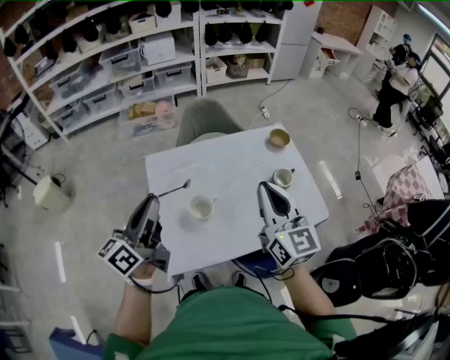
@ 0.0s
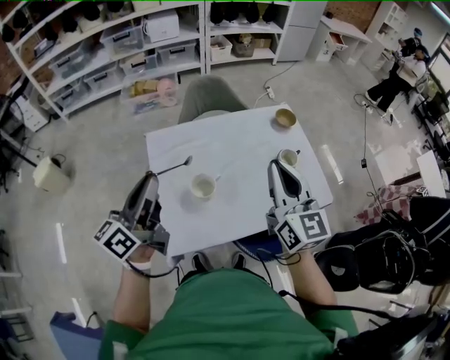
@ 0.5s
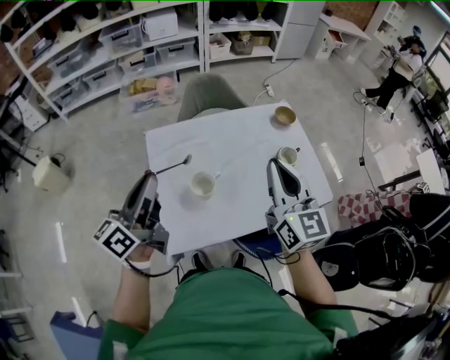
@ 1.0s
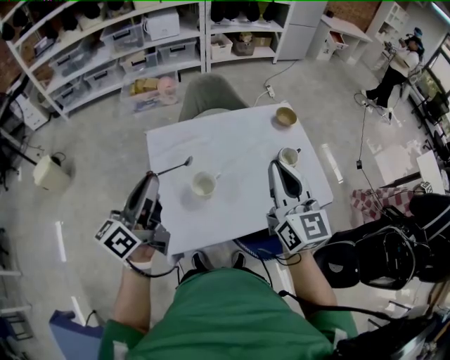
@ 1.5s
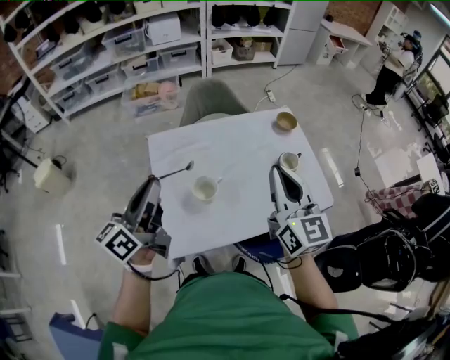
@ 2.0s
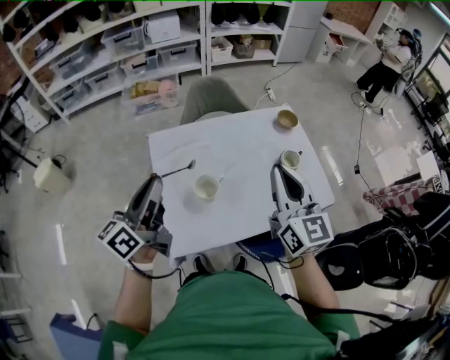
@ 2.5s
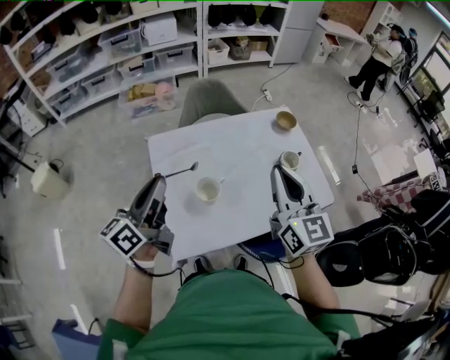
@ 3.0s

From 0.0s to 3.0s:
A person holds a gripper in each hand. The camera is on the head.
From 0.0s to 3.0s: The grippers make only small movements.

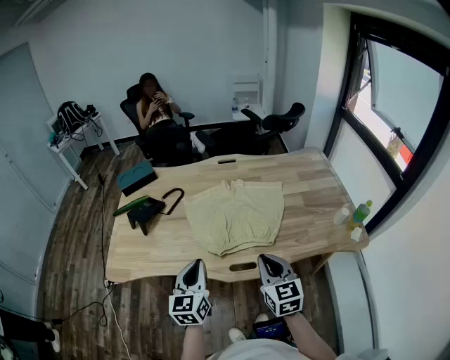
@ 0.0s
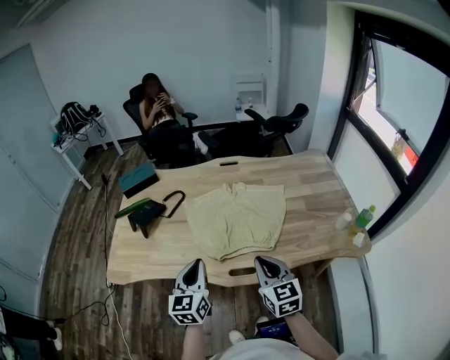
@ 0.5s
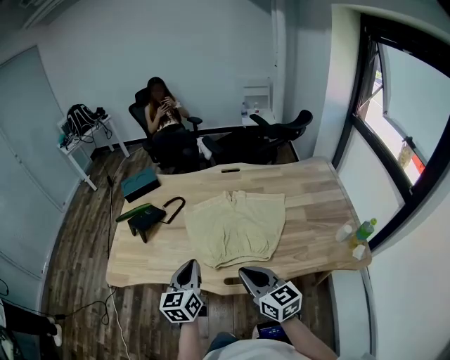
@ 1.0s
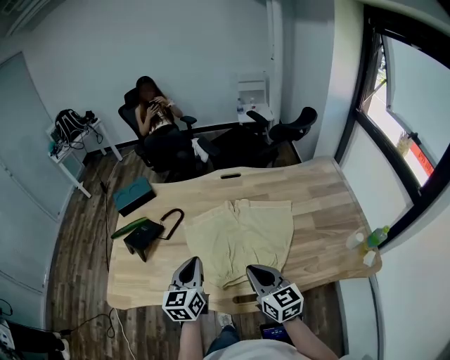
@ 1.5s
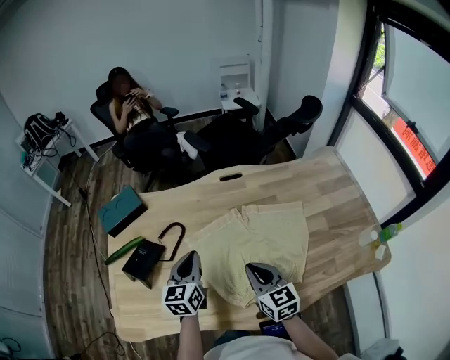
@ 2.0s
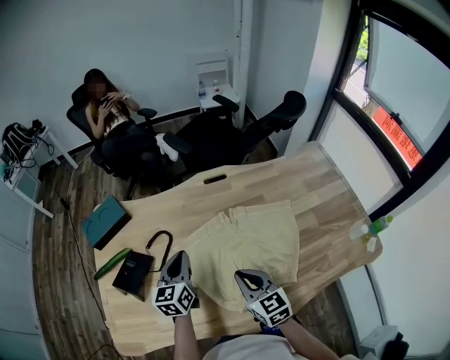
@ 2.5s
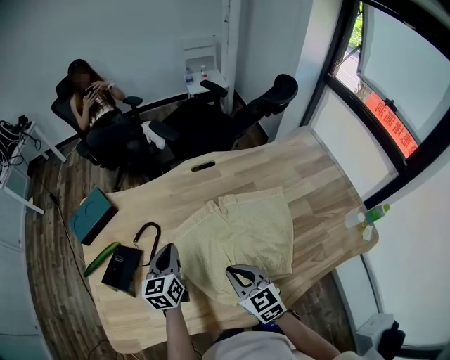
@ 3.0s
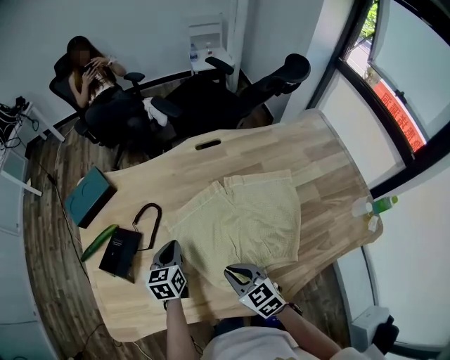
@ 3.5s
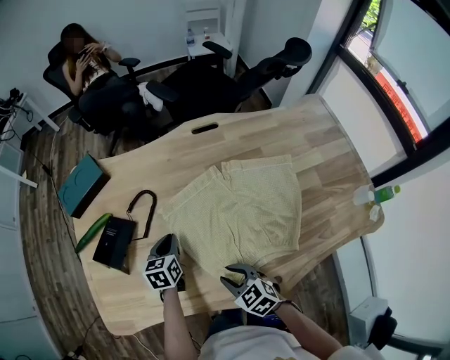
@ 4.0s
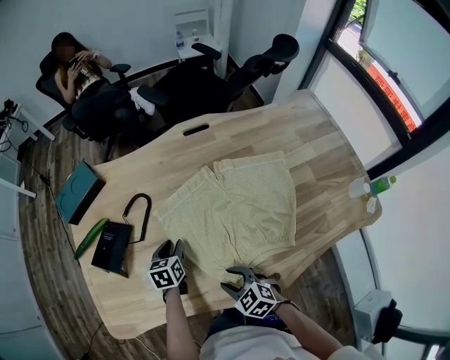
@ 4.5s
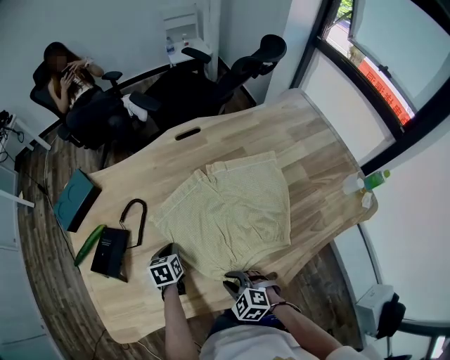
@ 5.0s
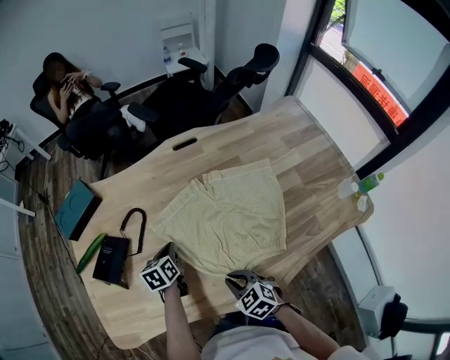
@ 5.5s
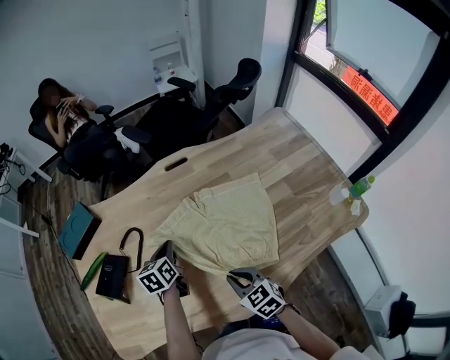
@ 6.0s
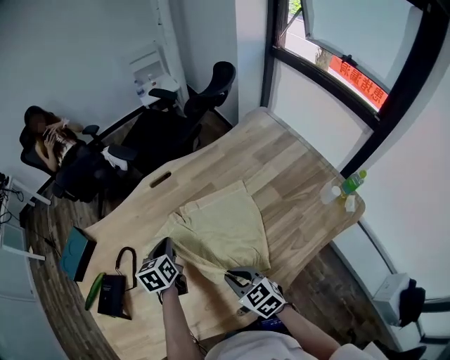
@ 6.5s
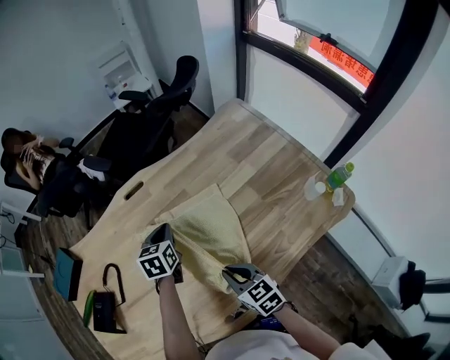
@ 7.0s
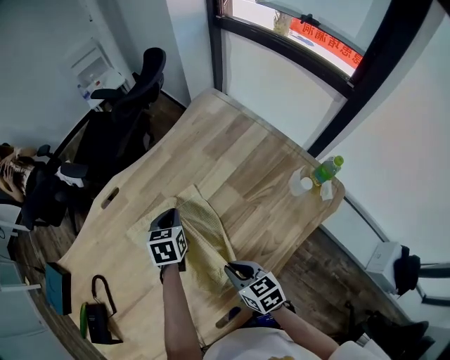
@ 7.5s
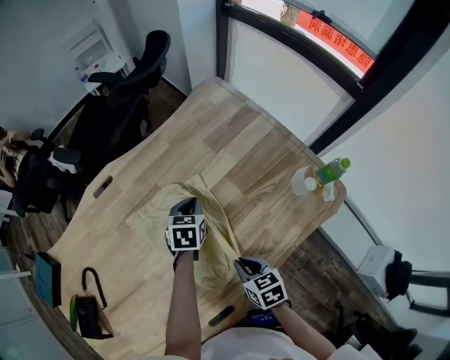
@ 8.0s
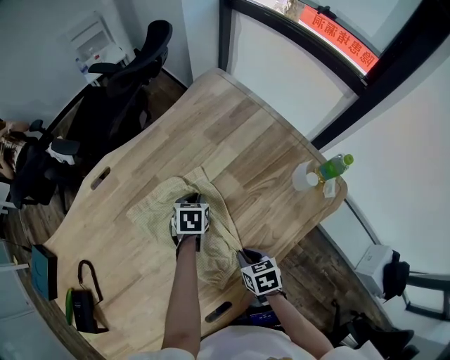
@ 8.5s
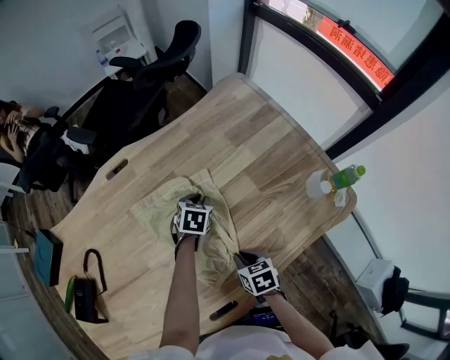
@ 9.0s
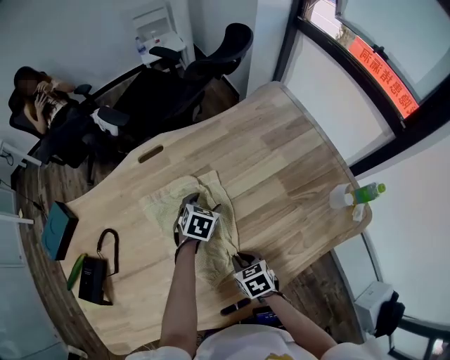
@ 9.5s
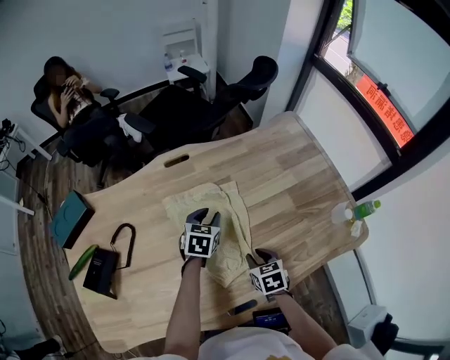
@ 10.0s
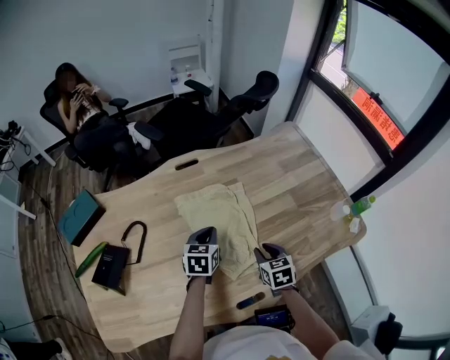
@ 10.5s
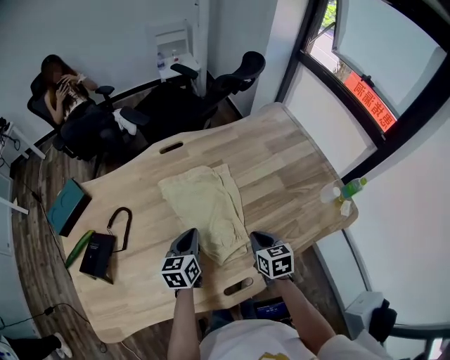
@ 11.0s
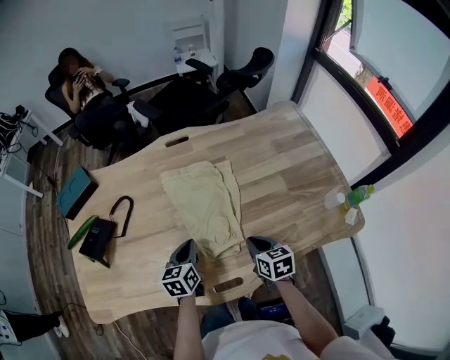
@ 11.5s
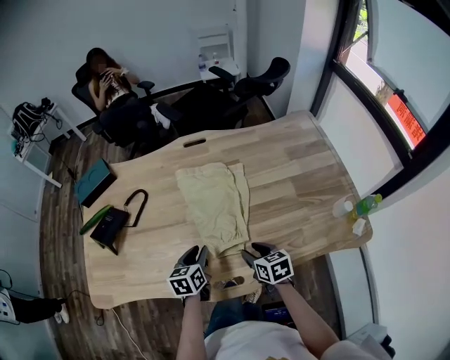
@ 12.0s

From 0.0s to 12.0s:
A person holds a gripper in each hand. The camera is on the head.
From 0.0s to 2.0s: The grippers both shift forward by approximately 25 cm.
From 2.0s to 4.0s: The left gripper moves downward, approximately 15 cm, and turns by approximately 20 degrees. Meanwhile the right gripper moves downward, to the left and backward, roughly 20 cm, rotates about 30 degrees, and opens up.
From 4.0s to 6.0s: Both grippers move to the right and upward, some 10 cm. The left gripper opens, then closes once more.
From 6.0s to 8.0s: The left gripper shifts some 35 cm to the right, and swivels approximately 40 degrees. The right gripper goes some 20 cm to the right, and rotates some 40 degrees.
From 8.0s to 10.0s: The right gripper heads to the left, covering about 10 cm, and changes its angle by roughly 20 degrees. The left gripper travels to the left by approximately 15 cm, and opens up.
From 10.0s to 12.0s: The right gripper ends up roughly 5 cm from where it was, changes its angle by some 20 degrees, and closes, then reopens, while the left gripper ends up approximately 25 cm from where it was, and changes its angle by about 30 degrees.

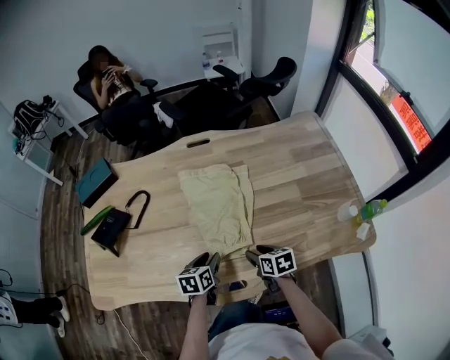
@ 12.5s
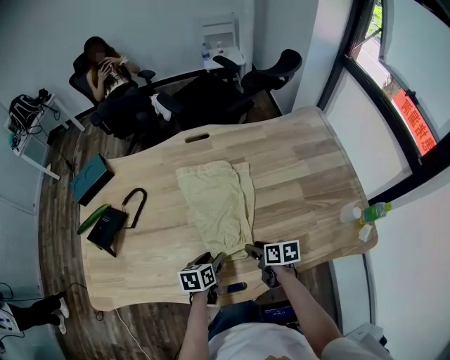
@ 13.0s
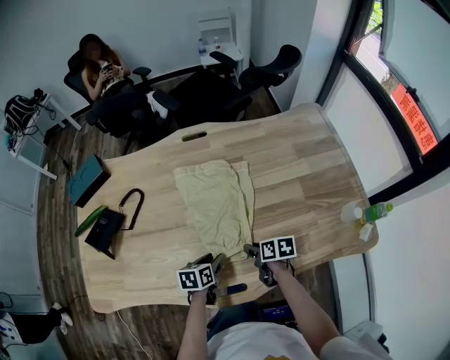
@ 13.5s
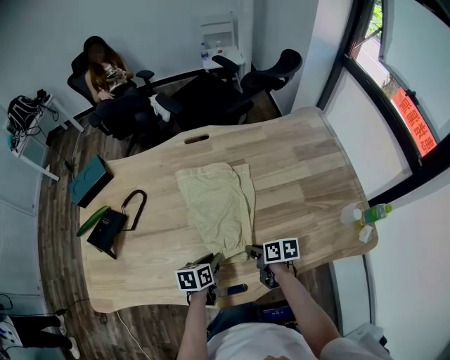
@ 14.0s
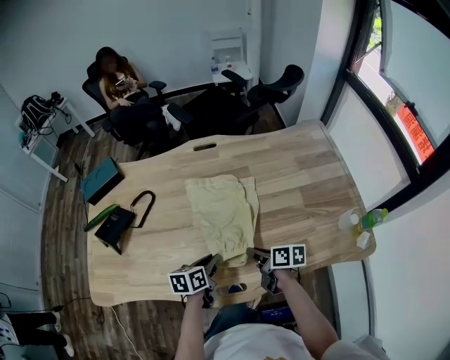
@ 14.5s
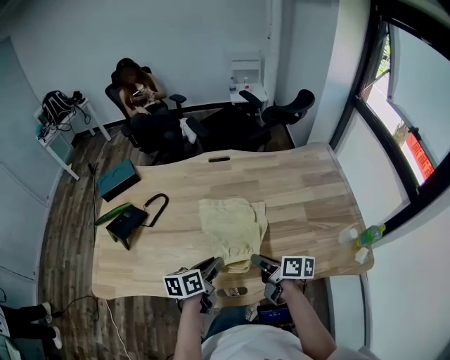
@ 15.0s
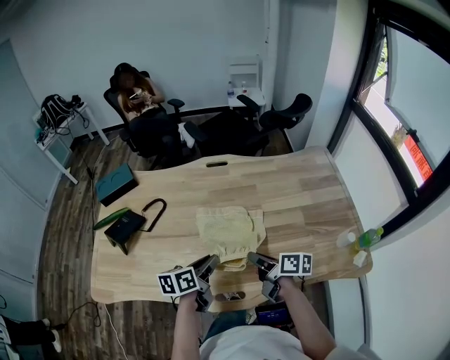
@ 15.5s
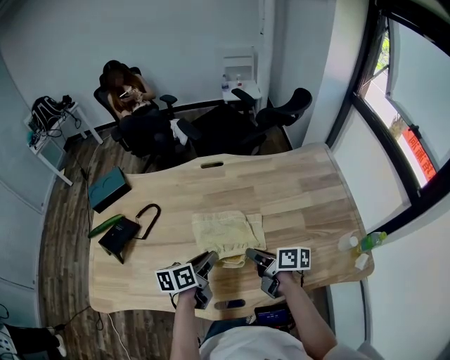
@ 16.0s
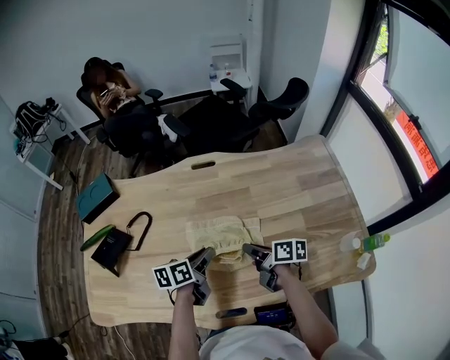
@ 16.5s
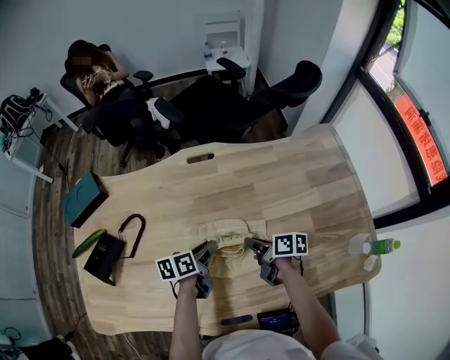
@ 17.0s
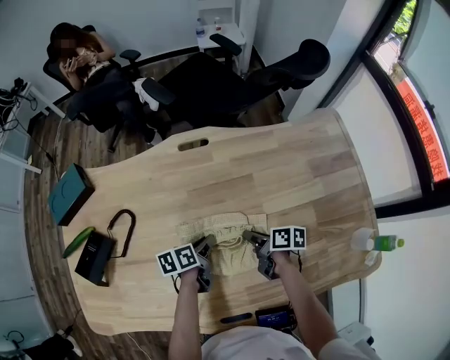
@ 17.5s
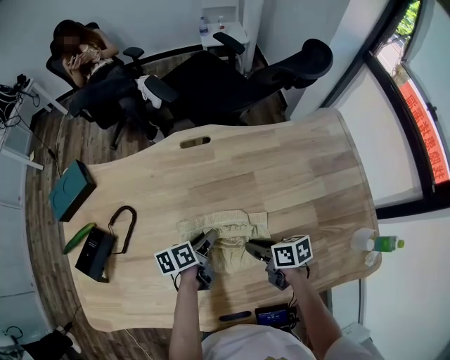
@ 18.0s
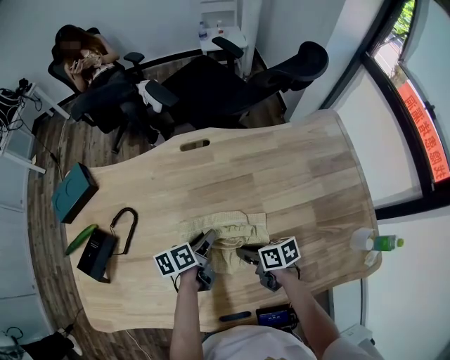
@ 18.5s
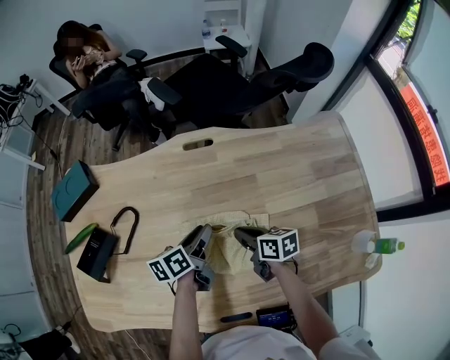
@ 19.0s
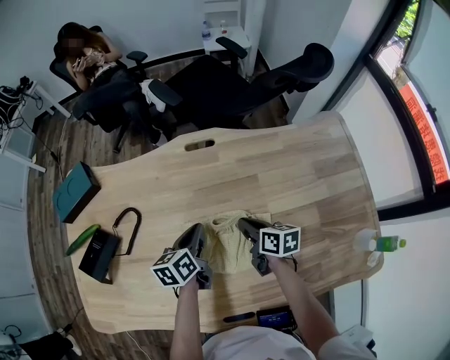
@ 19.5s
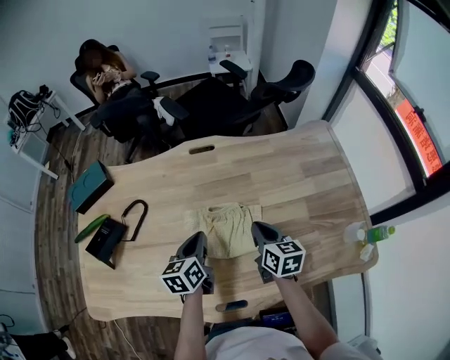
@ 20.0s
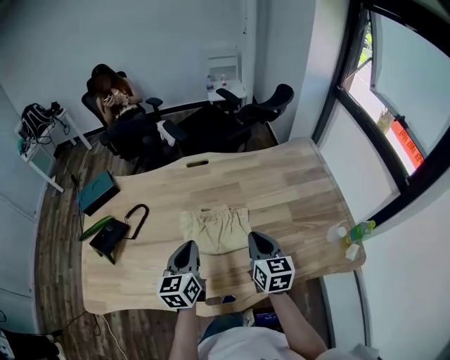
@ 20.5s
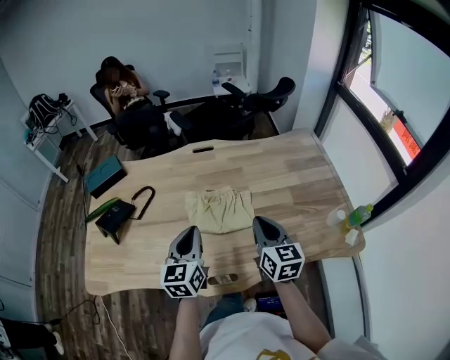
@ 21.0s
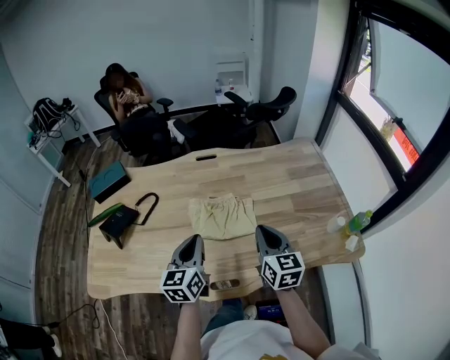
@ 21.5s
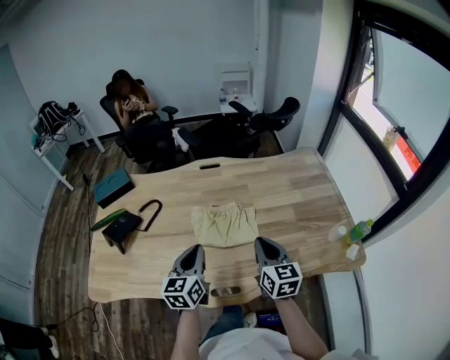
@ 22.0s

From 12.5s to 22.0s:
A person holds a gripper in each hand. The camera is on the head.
From 12.5s to 14.5s: The right gripper goes about 5 cm upward, rotates about 30 degrees, and closes up.
From 14.5s to 16.5s: The left gripper is displaced forward and upward by approximately 10 cm, while the right gripper travels forward by about 10 cm.
From 16.5s to 18.0s: The right gripper travels downward by some 10 cm. The left gripper is displaced downward and forward by some 10 cm.
From 18.0s to 20.0s: The two grippers go some 10 cm upward. The right gripper changes its angle by roughly 40 degrees. The left gripper turns by approximately 30 degrees, and closes up.
From 20.0s to 22.0s: The grippers both shift backward and upward by some 15 cm. The left gripper swivels about 20 degrees.

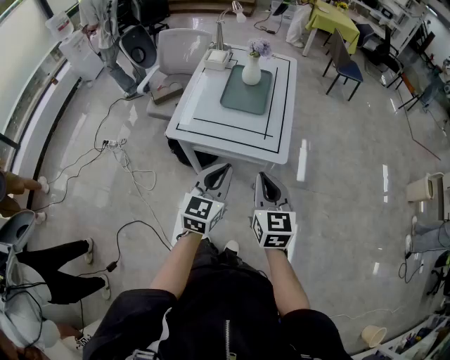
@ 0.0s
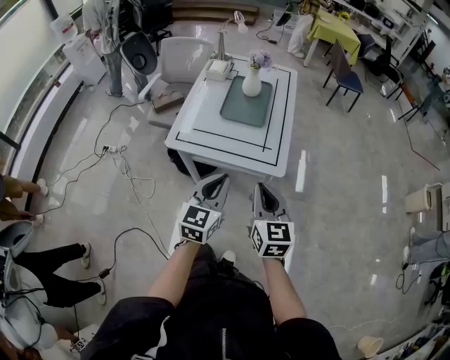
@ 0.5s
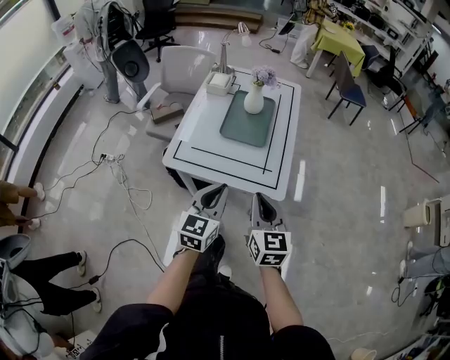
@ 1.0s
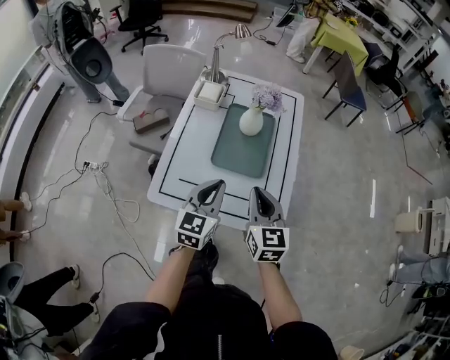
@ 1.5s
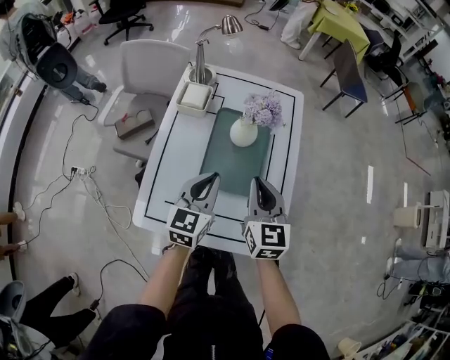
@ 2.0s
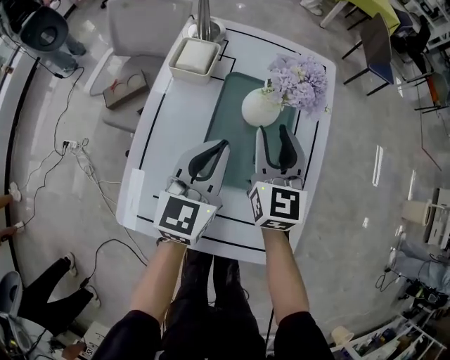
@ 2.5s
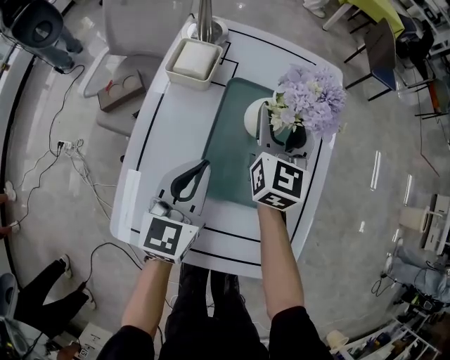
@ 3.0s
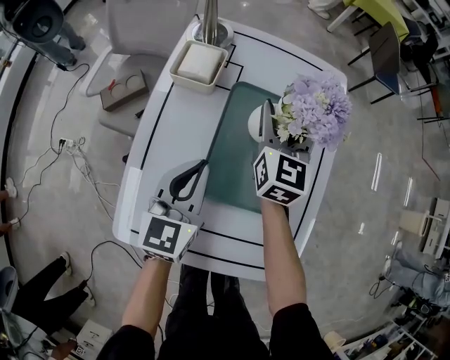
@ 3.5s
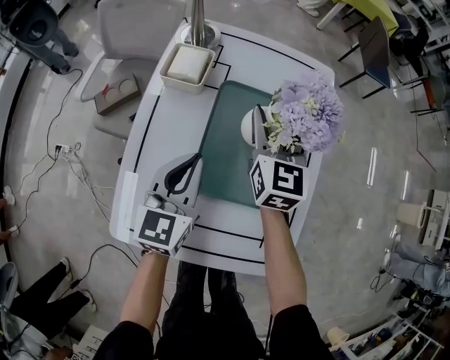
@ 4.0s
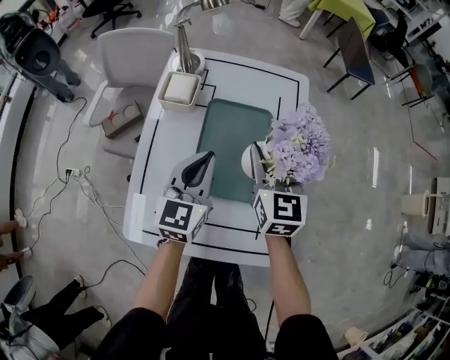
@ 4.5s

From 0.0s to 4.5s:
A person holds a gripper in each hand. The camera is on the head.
From 0.0s to 2.0s: The two grippers travel together, forward, some 40 cm.
From 2.0s to 4.5s: The grippers both shift forward by some 10 cm. The left gripper reaches roughly 10 cm downward, then returns. The right gripper opens its fingers.
